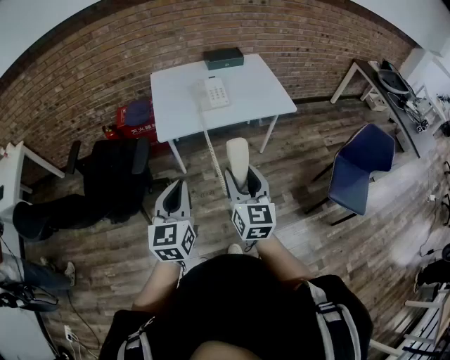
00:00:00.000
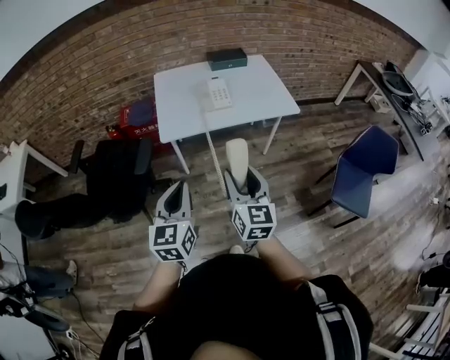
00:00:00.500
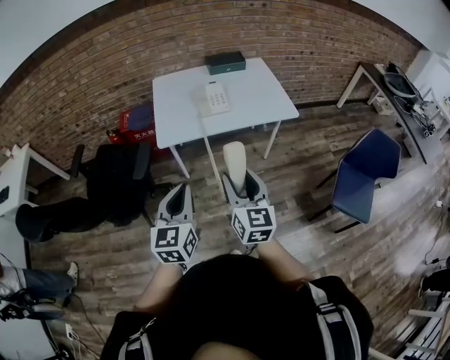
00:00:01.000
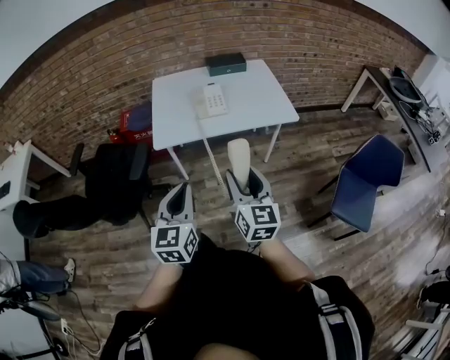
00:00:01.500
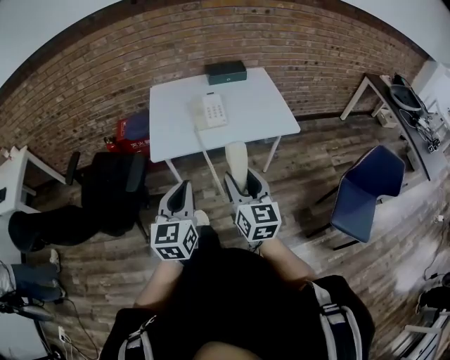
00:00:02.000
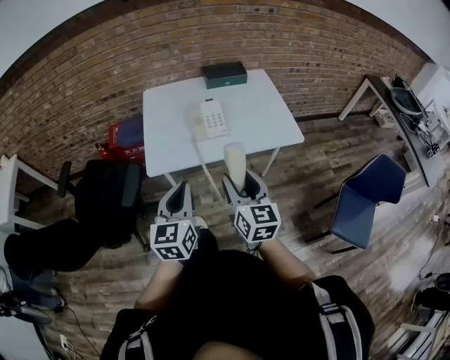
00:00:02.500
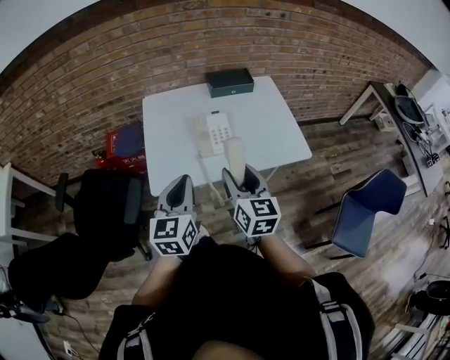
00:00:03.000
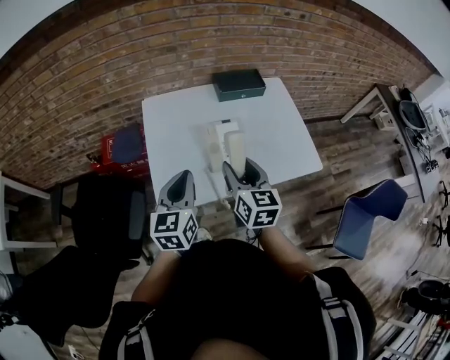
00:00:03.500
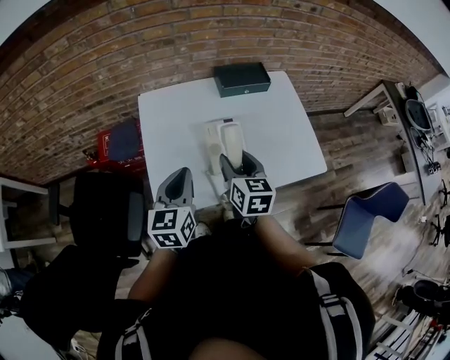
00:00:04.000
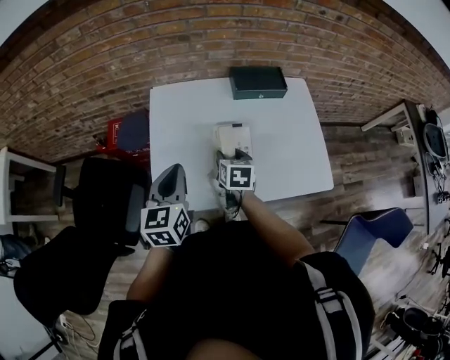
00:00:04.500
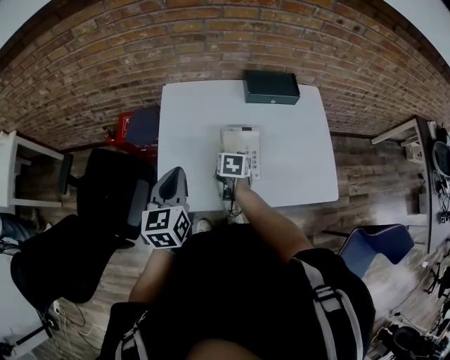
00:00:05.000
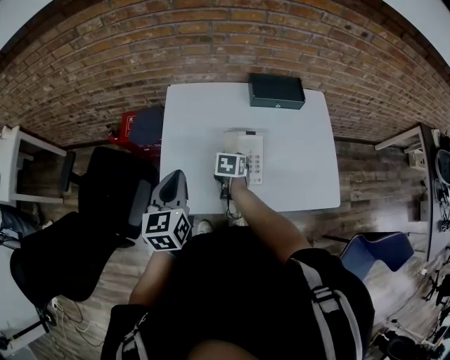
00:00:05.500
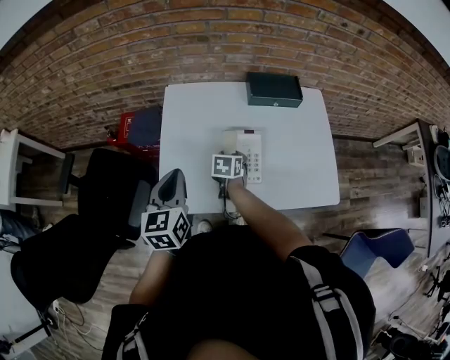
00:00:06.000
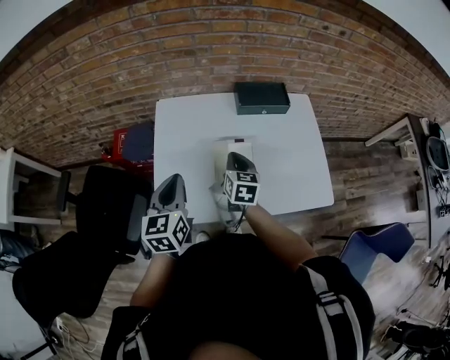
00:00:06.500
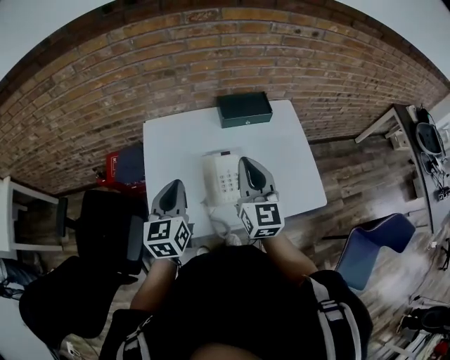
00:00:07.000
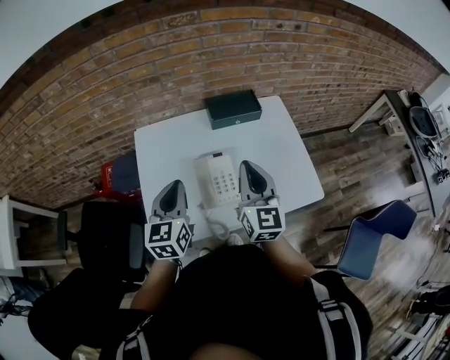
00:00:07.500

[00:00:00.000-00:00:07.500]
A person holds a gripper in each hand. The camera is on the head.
00:00:00.000 to 00:00:02.000: Both grippers travel together forward and to the right, about 10 cm.
00:00:02.000 to 00:00:04.000: Both grippers move forward, roughly 40 cm. The right gripper changes its angle by roughly 20 degrees.
00:00:04.000 to 00:00:05.500: The right gripper shifts about 20 cm downward and forward, and points its fingers roughly 30 degrees further downward.
00:00:05.500 to 00:00:07.500: The left gripper moves to the right, roughly 10 cm. Meanwhile the right gripper travels upward and to the right by approximately 30 cm, tips its fingers upward by approximately 60 degrees, and closes its fingers.

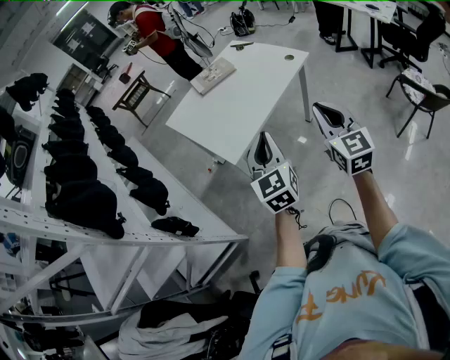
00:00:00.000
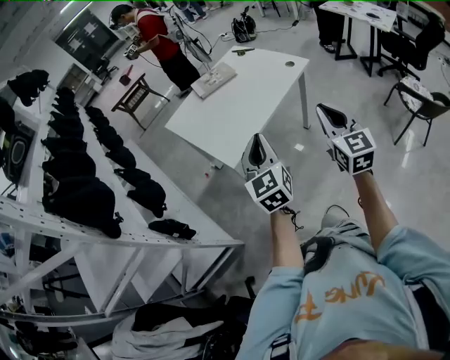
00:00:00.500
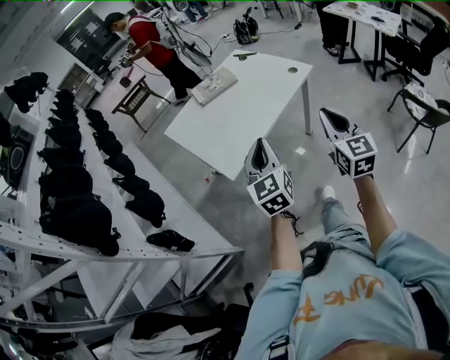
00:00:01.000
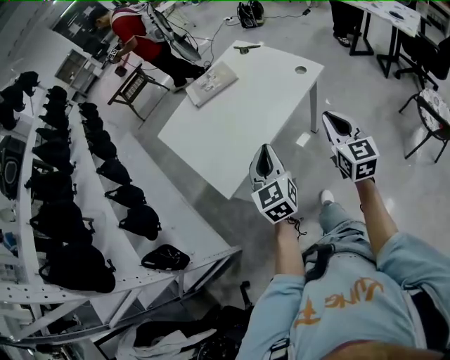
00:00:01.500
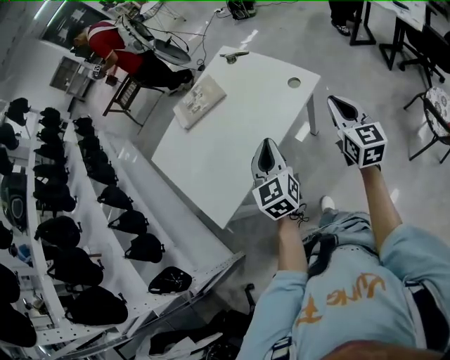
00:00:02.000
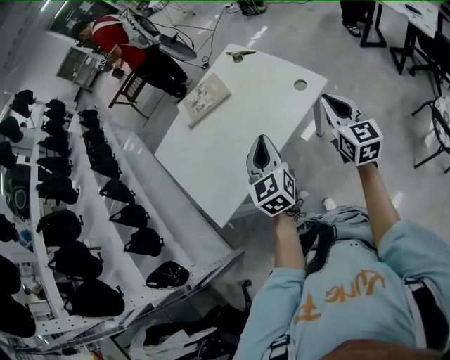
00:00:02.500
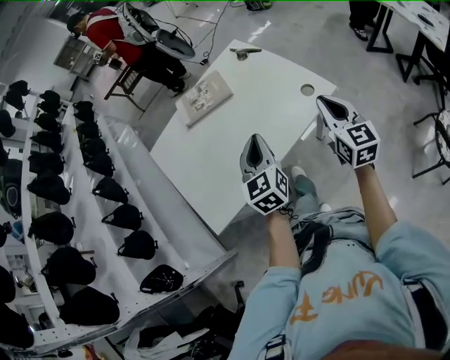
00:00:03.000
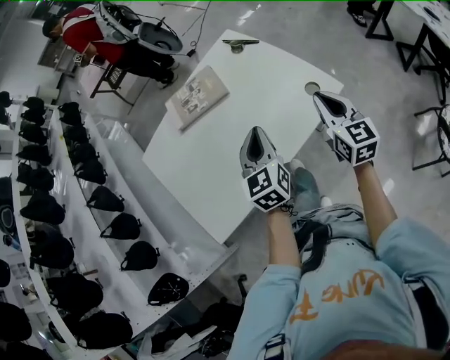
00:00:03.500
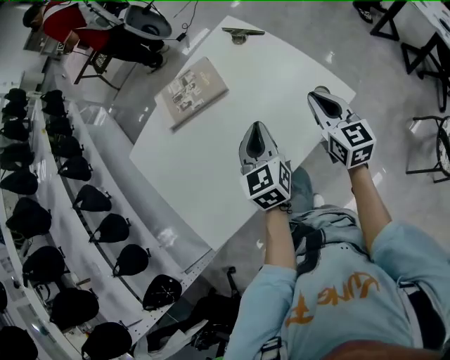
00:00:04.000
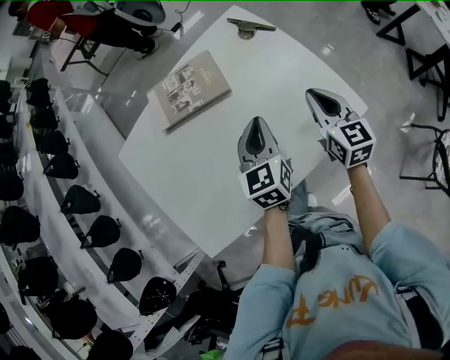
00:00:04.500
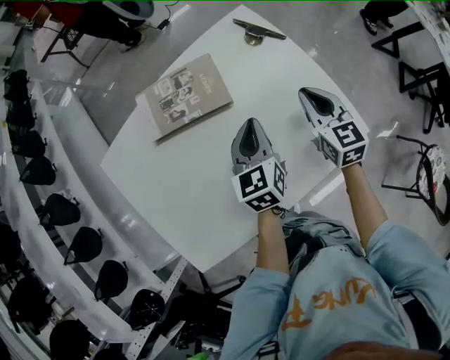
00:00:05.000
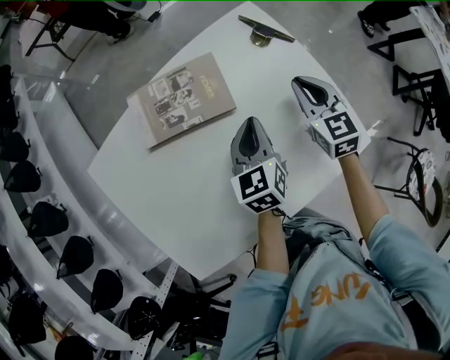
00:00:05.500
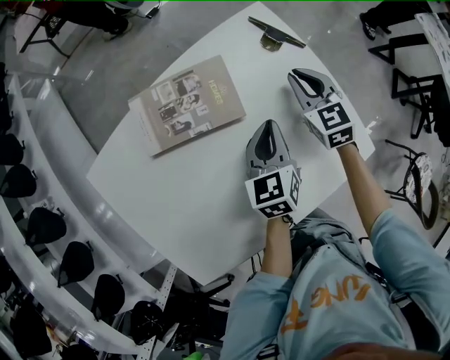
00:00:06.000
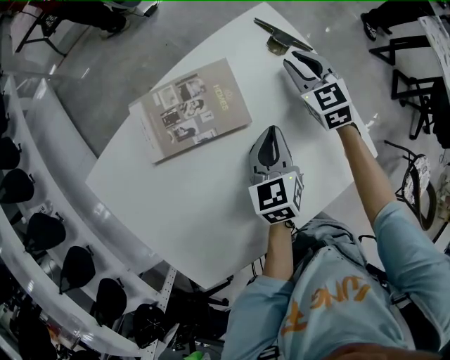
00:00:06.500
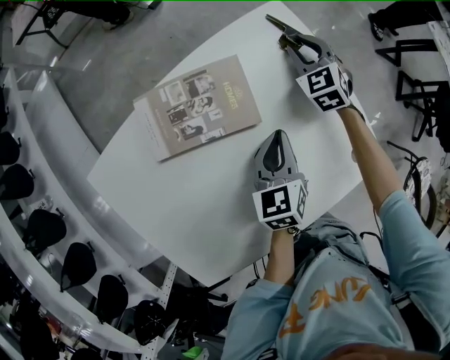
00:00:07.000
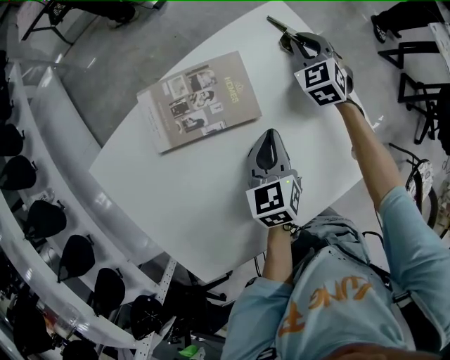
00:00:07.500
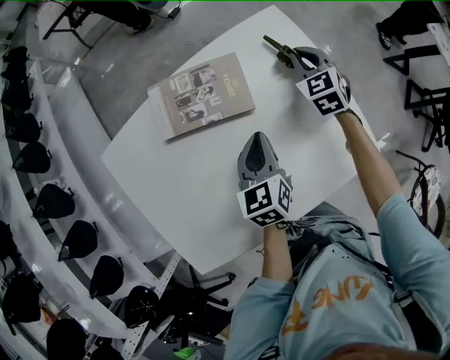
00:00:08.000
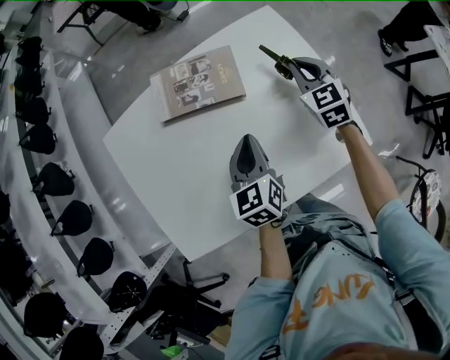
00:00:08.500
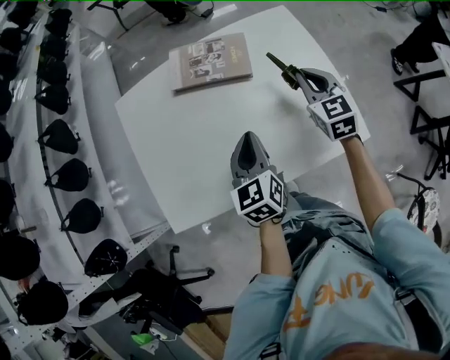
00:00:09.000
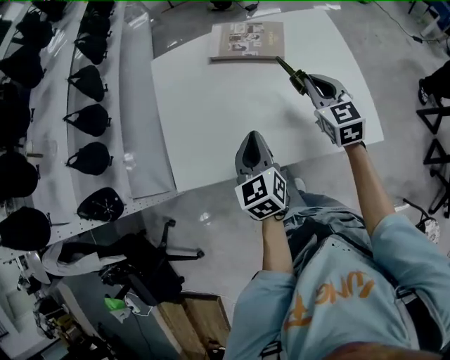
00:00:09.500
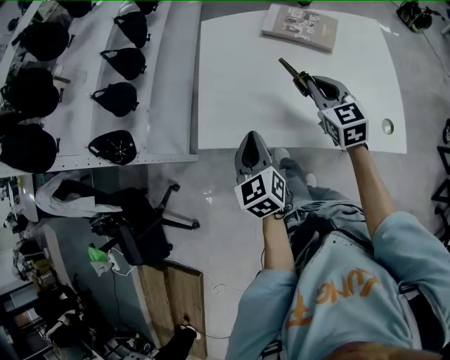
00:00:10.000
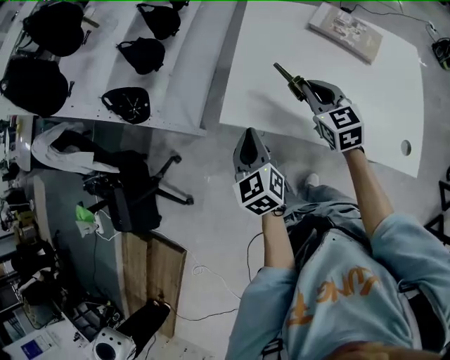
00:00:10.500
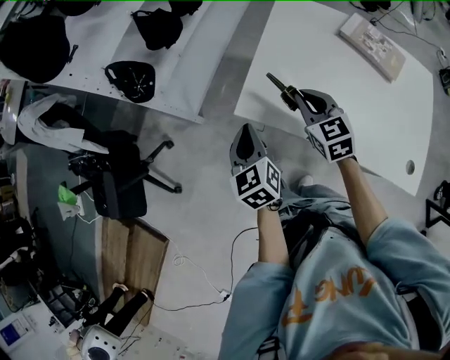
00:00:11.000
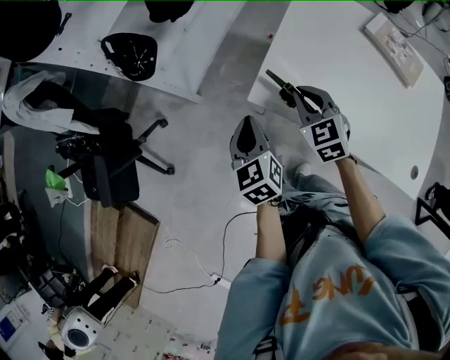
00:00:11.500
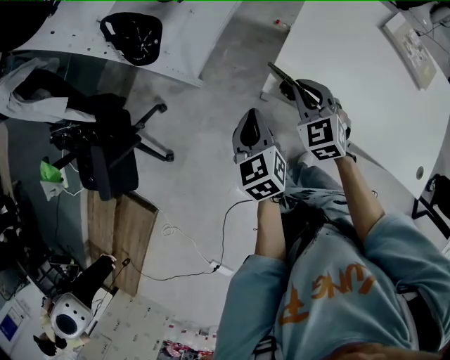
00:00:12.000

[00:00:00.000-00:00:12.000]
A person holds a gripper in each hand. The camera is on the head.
00:00:00.000 to 00:00:02.000: The two grippers go approximately 35 cm forward and to the right.
00:00:02.000 to 00:00:04.000: The right gripper goes about 25 cm forward and downward; the left gripper travels forward by some 25 cm.
00:00:04.000 to 00:00:06.000: The right gripper travels forward by roughly 25 cm, and swivels about 30 degrees; the left gripper shifts approximately 20 cm forward and downward.
00:00:06.000 to 00:00:08.000: The right gripper goes about 5 cm forward; the left gripper heads to the left, covering some 5 cm.
00:00:08.000 to 00:00:10.000: The right gripper ends up about 40 cm from where it was, and swivels about 40 degrees. Meanwhile the left gripper shifts by about 35 cm, and rotates roughly 40 degrees.
00:00:10.000 to 00:00:12.000: The grippers both shift to the left by approximately 30 cm. The left gripper turns by approximately 20 degrees, while the right gripper turns by some 40 degrees.

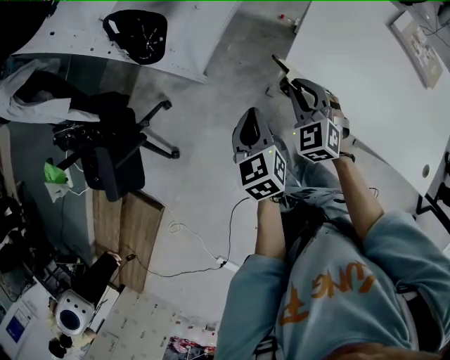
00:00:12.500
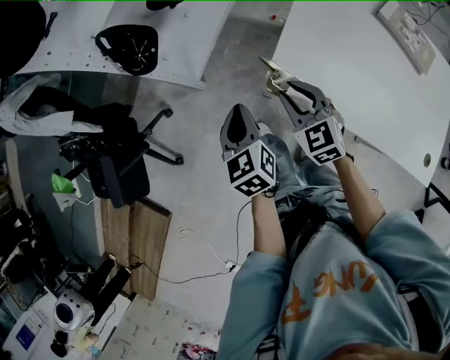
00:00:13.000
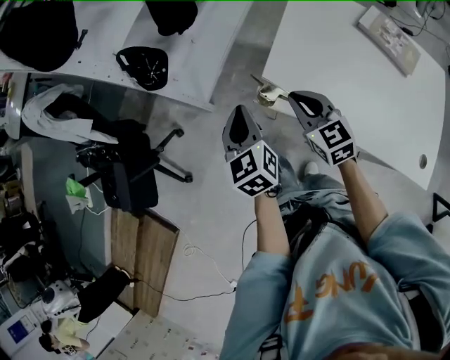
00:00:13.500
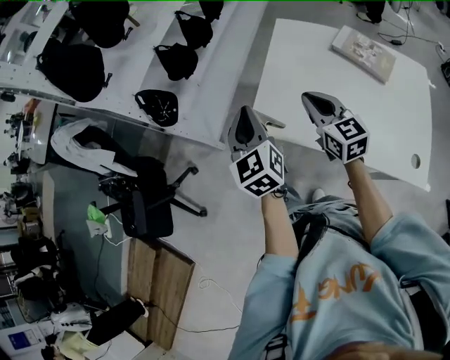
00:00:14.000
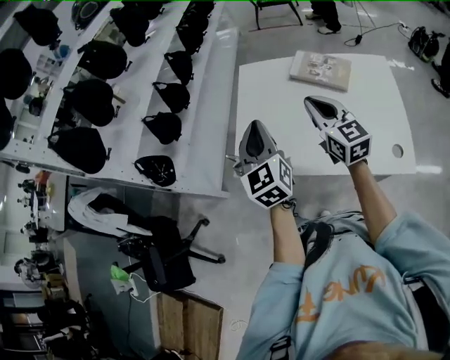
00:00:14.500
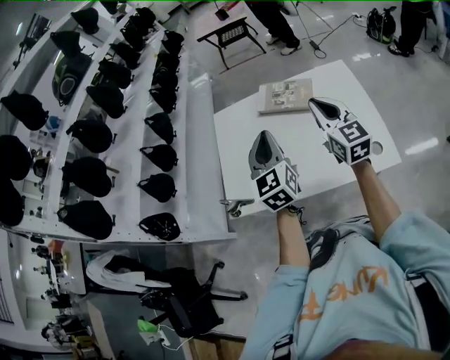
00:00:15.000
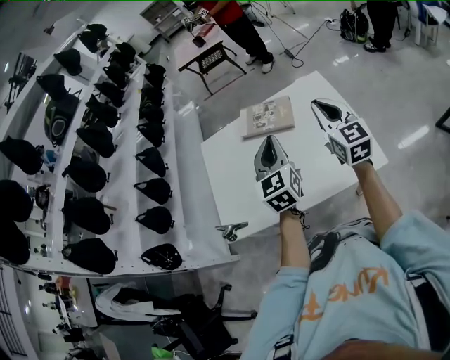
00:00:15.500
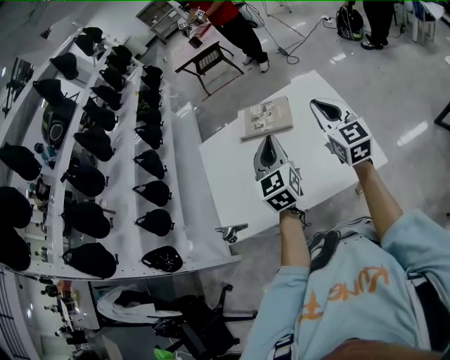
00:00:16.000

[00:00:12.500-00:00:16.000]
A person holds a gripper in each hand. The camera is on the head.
00:00:12.500 to 00:00:14.500: The two grippers go about 40 cm to the right and upward. The right gripper tips its fingers upward by approximately 30 degrees; the left gripper turns by roughly 40 degrees.
00:00:14.500 to 00:00:16.000: The left gripper ends up approximately 25 cm from where it was, and changes its angle by some 30 degrees, while the right gripper ends up some 25 cm from where it was, and turns by approximately 30 degrees.

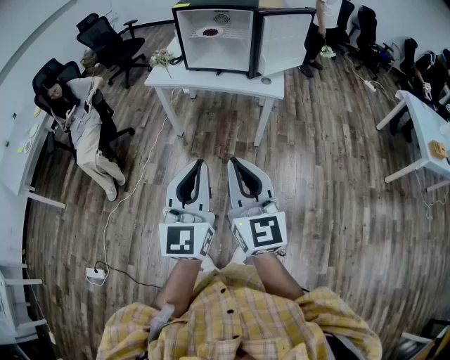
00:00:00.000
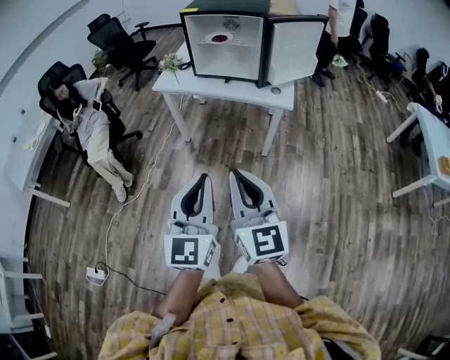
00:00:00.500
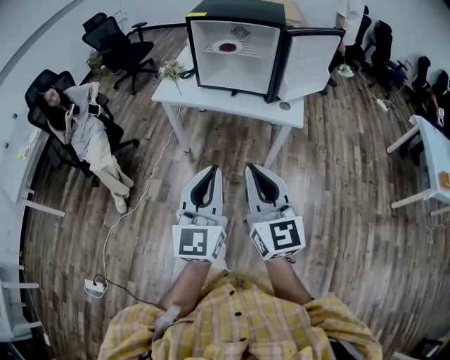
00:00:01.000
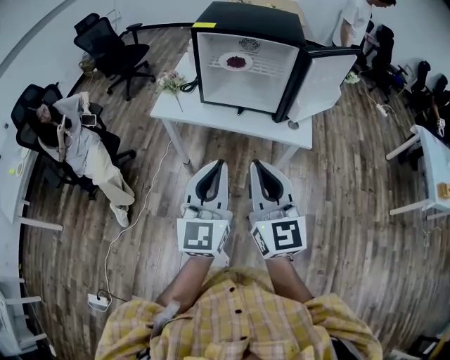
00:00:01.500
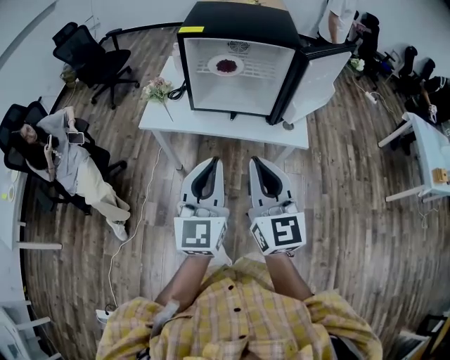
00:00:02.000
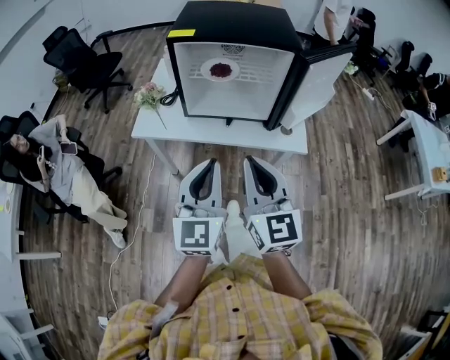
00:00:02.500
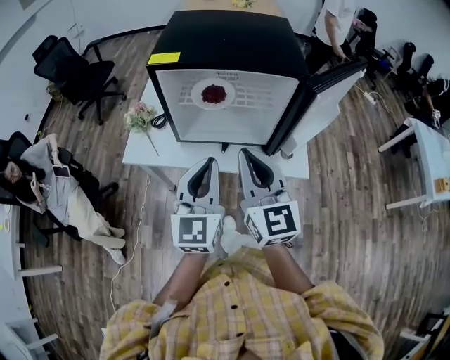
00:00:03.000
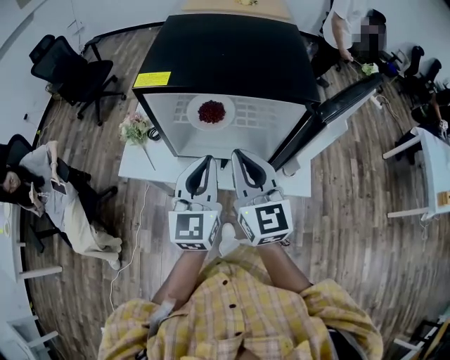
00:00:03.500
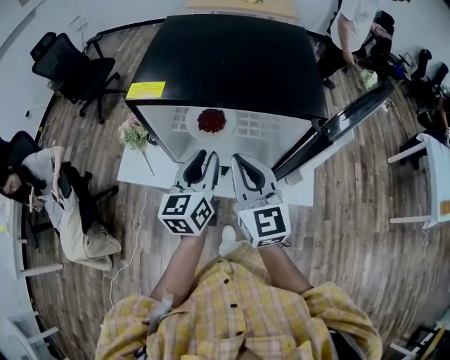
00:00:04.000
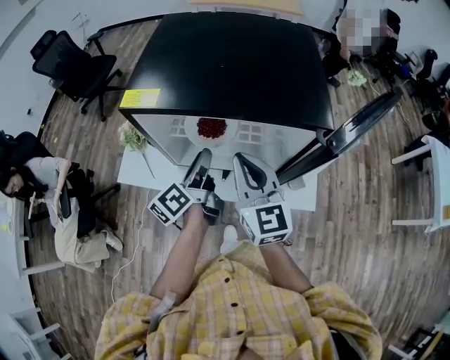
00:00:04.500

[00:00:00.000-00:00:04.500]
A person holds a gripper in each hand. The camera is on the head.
00:00:00.000 to 00:00:02.000: The two grippers go approximately 35 cm forward.
00:00:02.000 to 00:00:04.500: Both grippers move forward, approximately 35 cm. The left gripper rolls counterclockwise, seen from behind, by about 60 degrees, and opens up.
